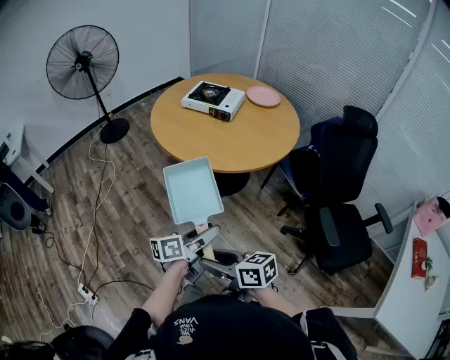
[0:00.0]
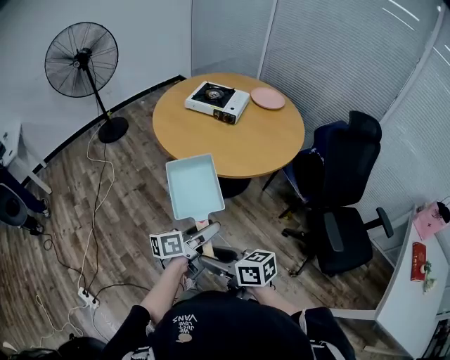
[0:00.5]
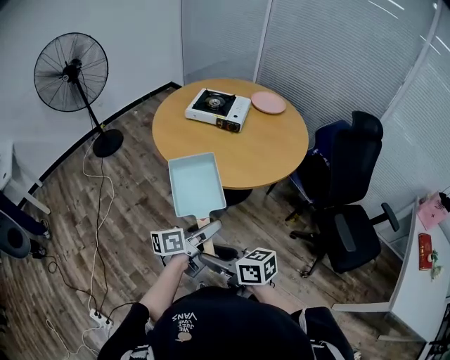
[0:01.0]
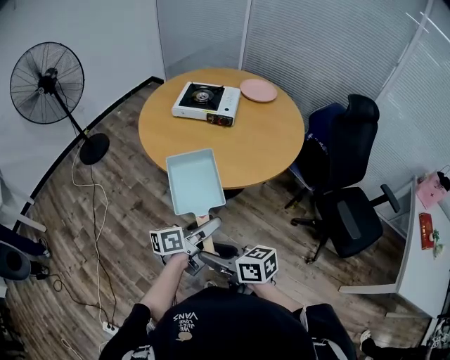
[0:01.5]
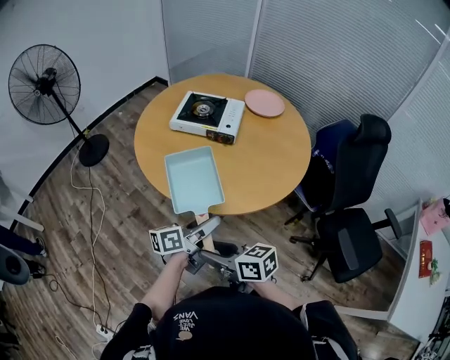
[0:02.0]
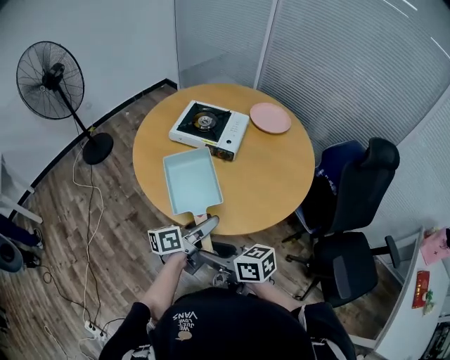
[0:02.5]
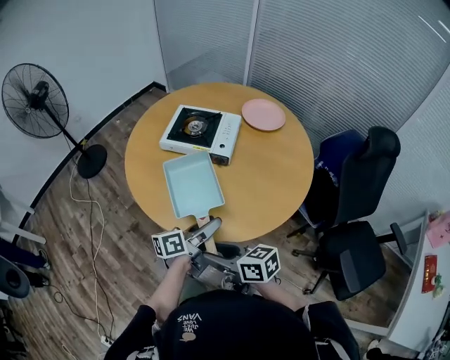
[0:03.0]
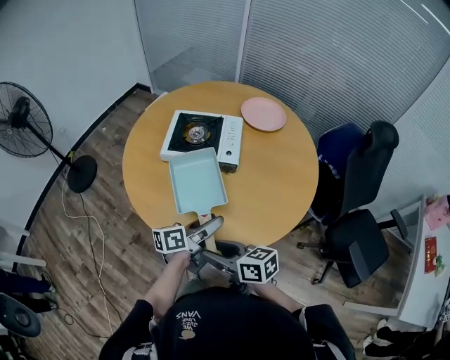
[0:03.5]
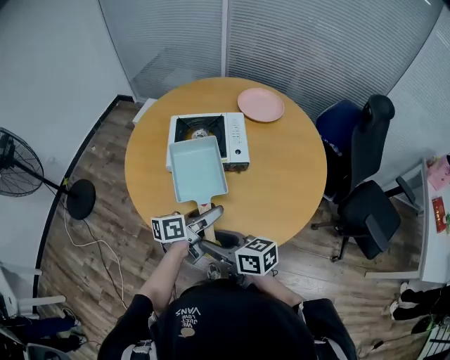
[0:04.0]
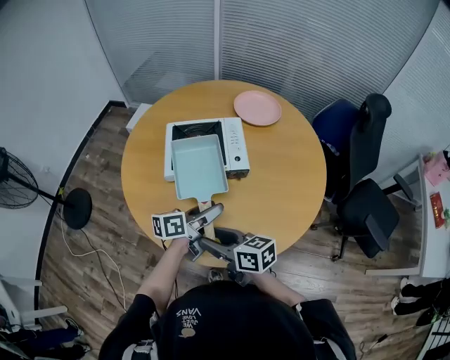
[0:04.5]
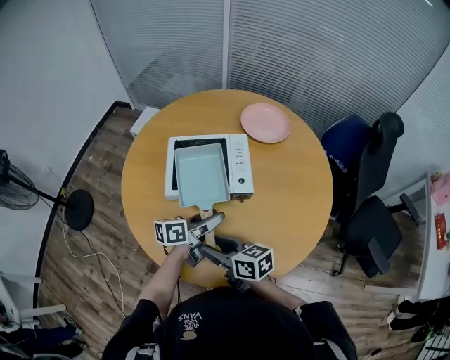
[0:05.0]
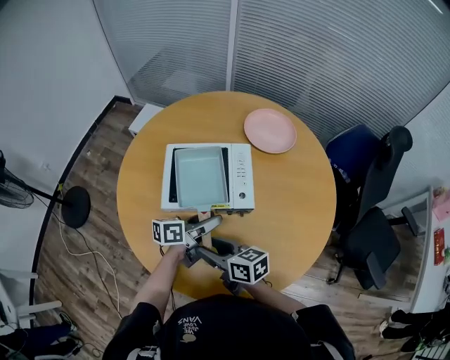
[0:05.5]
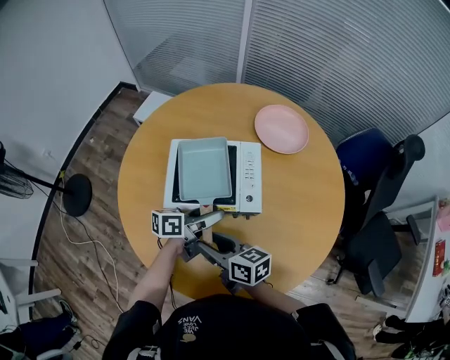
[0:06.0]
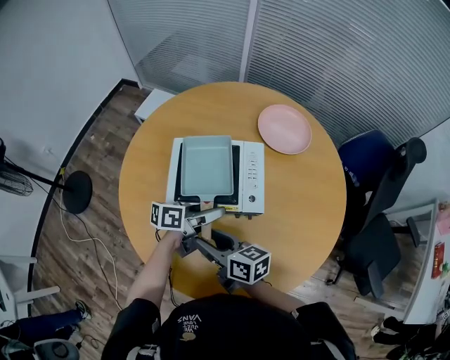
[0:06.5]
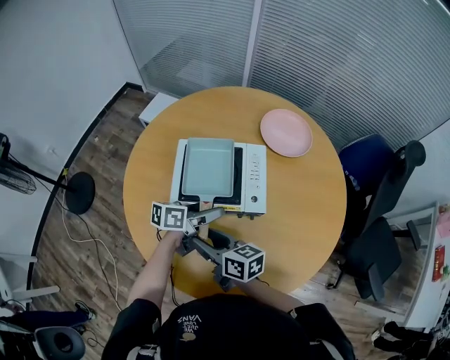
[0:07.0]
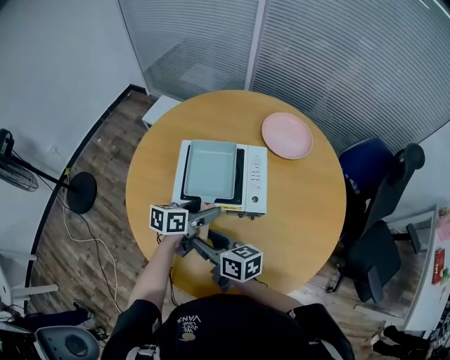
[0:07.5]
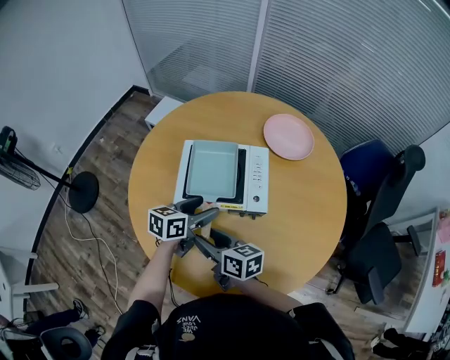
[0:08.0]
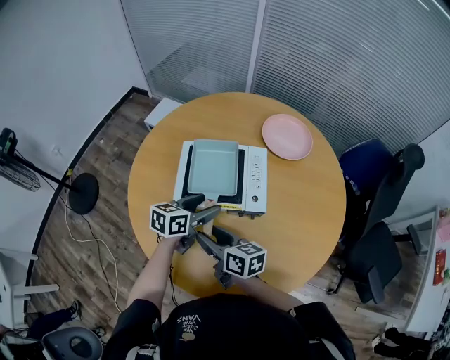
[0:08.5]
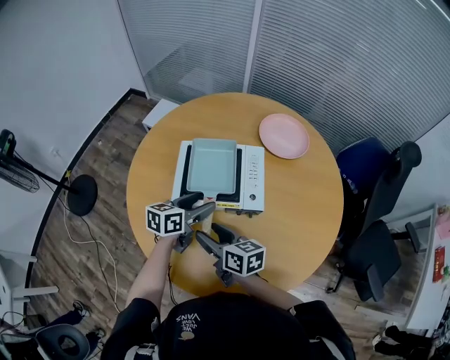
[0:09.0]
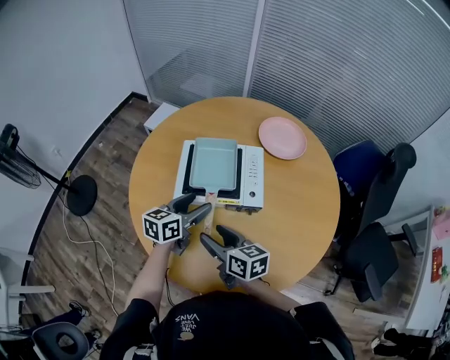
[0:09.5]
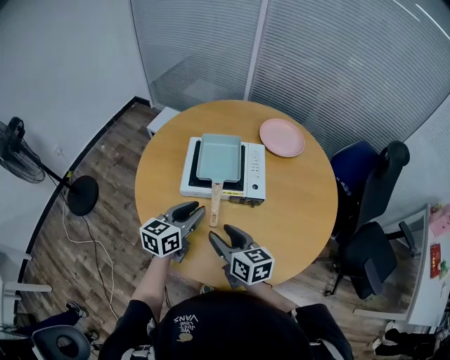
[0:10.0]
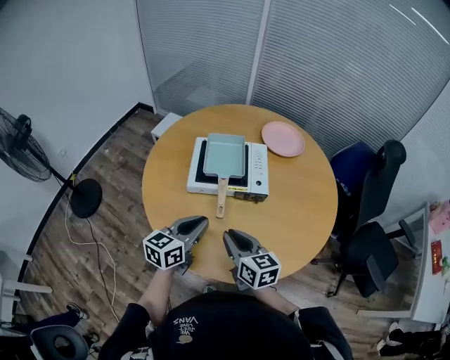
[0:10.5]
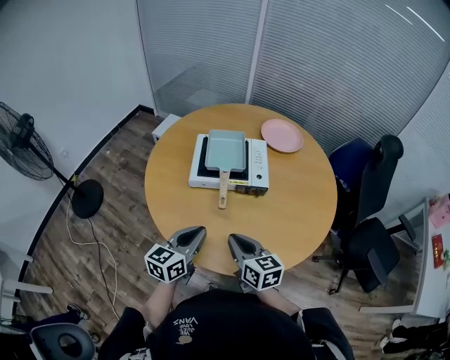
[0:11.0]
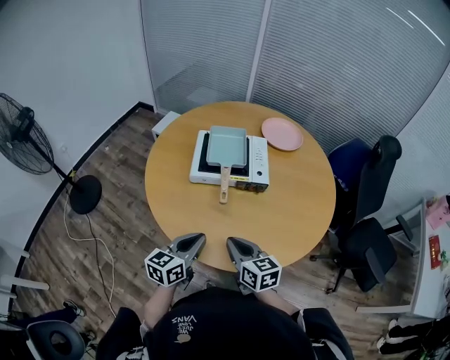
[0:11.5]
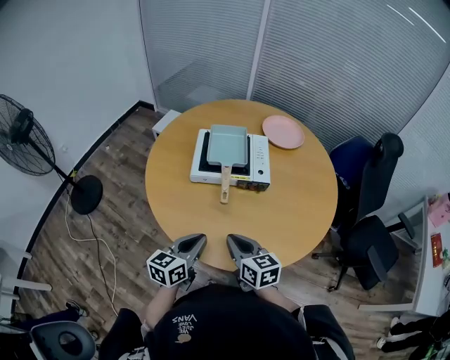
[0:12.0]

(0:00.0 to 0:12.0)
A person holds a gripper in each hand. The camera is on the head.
0:00.0 - 0:02.0: Both grippers travel together forward, some 30 cm.
0:02.0 - 0:04.0: The grippers both shift forward by some 25 cm. The right gripper turns by some 20 degrees; the left gripper changes its angle by roughly 20 degrees.
0:04.0 - 0:06.0: Both grippers move forward, some 20 cm.
0:06.0 - 0:08.0: The left gripper moves to the left, about 5 cm, and swivels roughly 30 degrees.
0:08.0 - 0:10.0: The left gripper goes some 10 cm backward and upward, and closes up. Meanwhile the right gripper shifts approximately 5 cm backward.
0:10.0 - 0:12.0: The left gripper shifts some 15 cm backward, and closes up; the right gripper shifts roughly 10 cm backward, and closes.

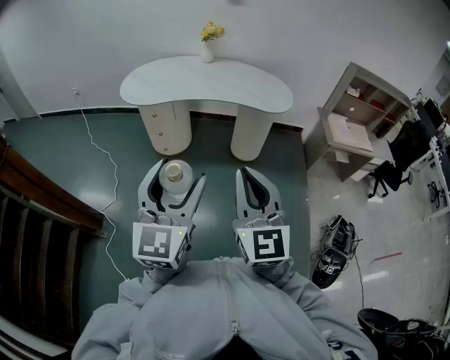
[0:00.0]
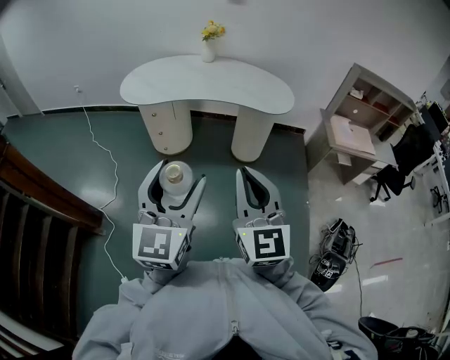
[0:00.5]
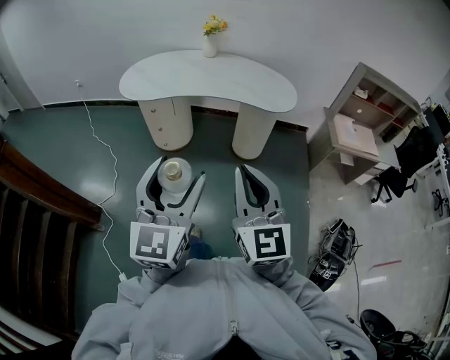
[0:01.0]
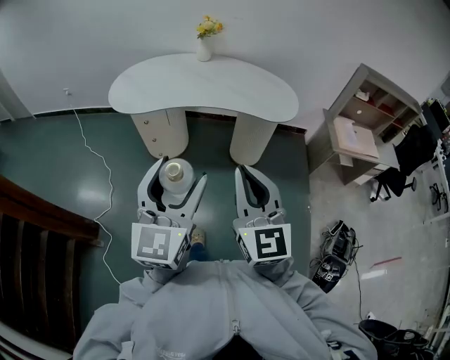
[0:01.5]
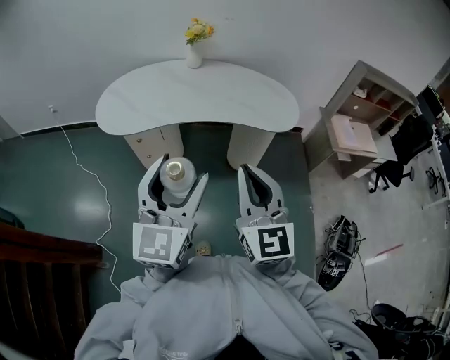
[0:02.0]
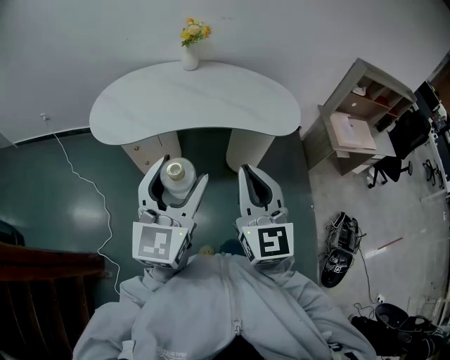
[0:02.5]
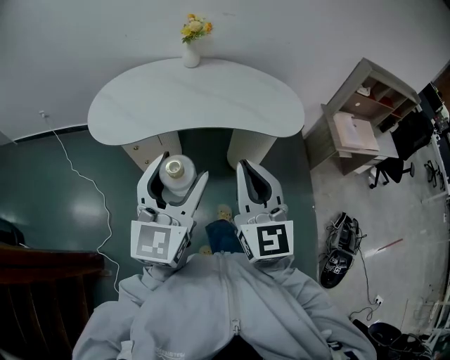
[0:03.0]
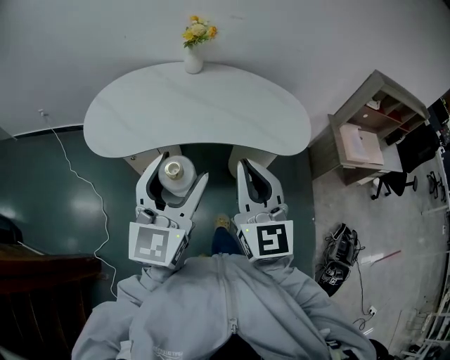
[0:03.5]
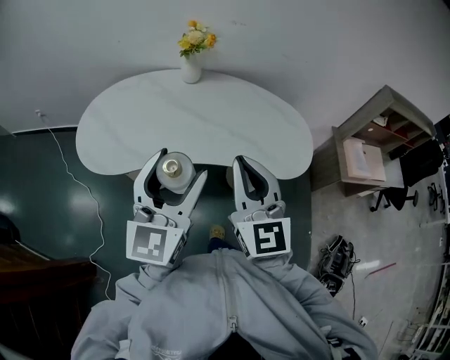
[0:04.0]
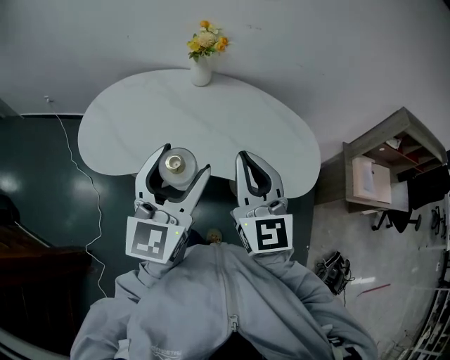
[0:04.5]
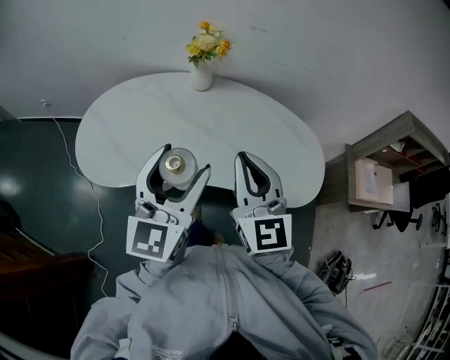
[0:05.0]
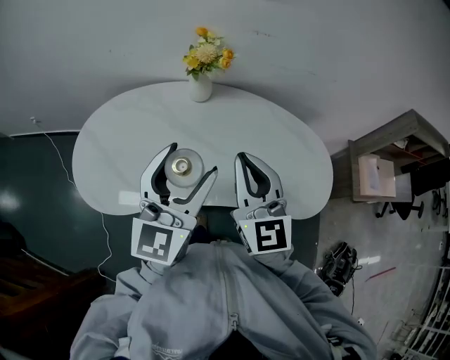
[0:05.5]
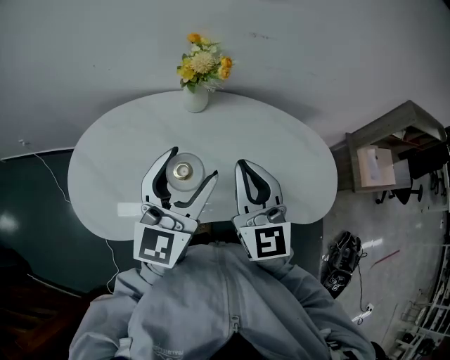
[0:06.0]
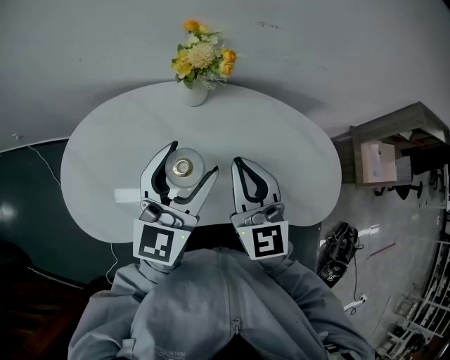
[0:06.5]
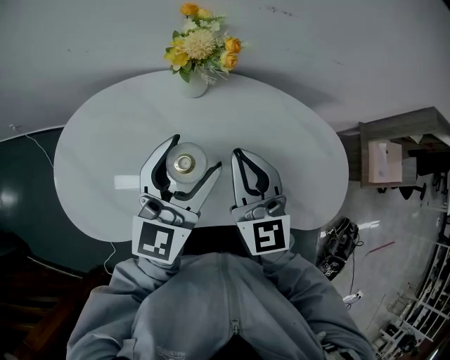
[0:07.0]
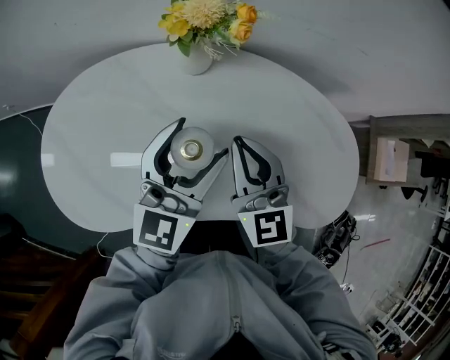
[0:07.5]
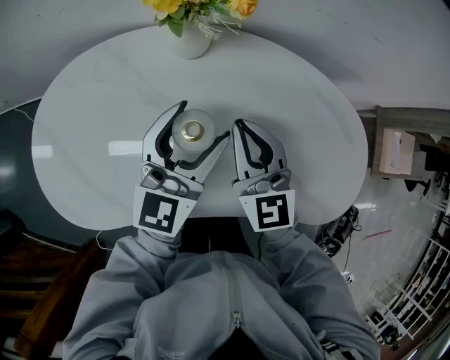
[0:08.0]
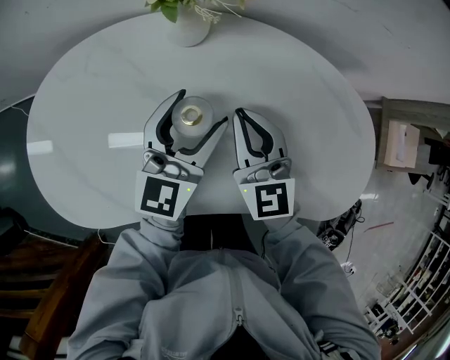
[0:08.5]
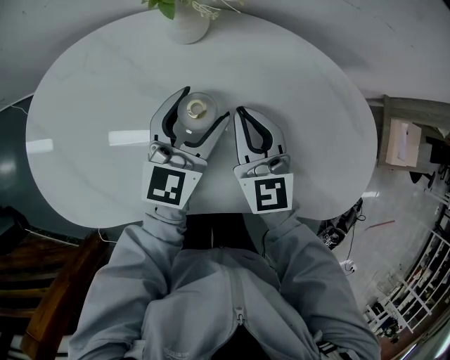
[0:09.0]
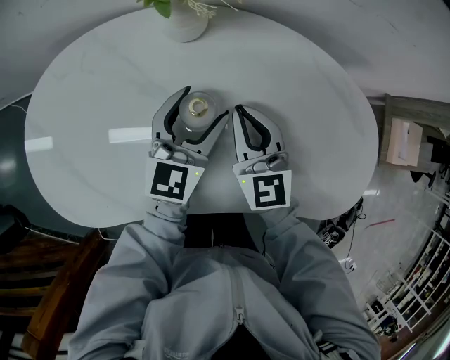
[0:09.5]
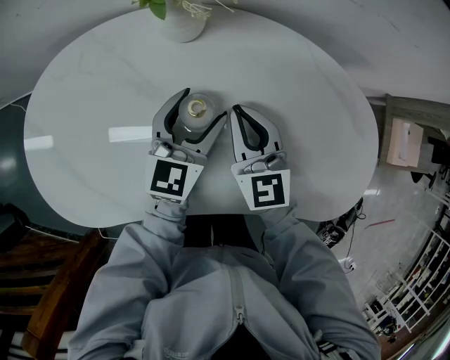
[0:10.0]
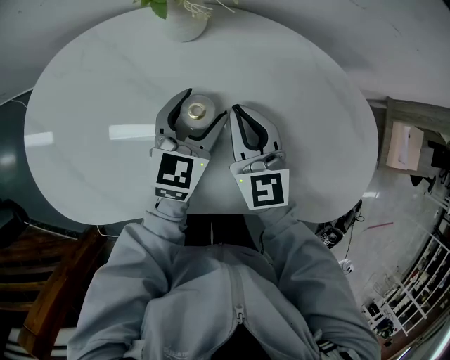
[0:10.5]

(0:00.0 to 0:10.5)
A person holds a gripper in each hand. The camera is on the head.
0:00.0 - 0:02.0: Both grippers move forward, approximately 25 cm.
0:02.0 - 0:04.0: The two grippers go approximately 30 cm forward.
0:04.0 - 0:06.5: Both grippers travel together forward, about 30 cm.
0:06.5 - 0:08.5: Both grippers travel together downward and forward, some 20 cm.
0:08.5 - 0:10.5: The left gripper moves downward, roughly 10 cm.

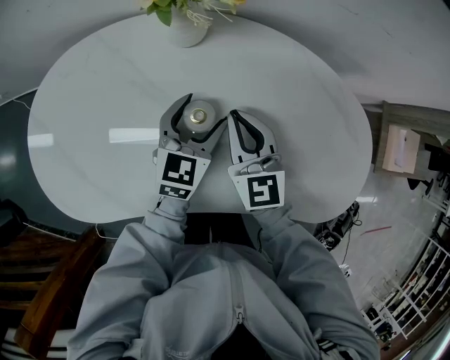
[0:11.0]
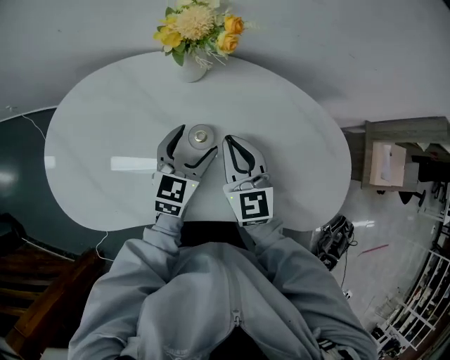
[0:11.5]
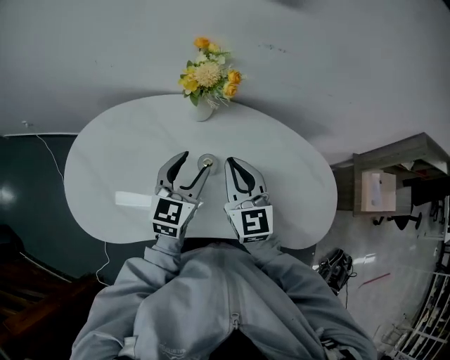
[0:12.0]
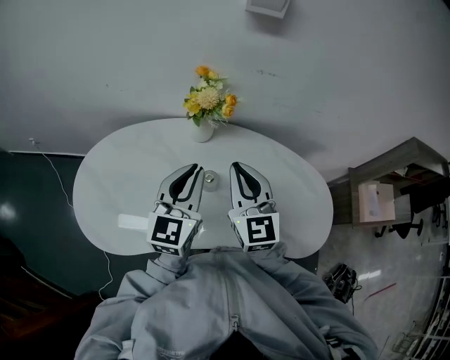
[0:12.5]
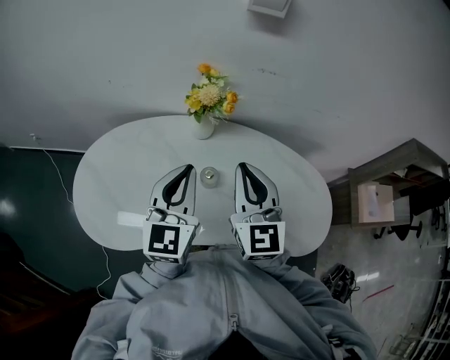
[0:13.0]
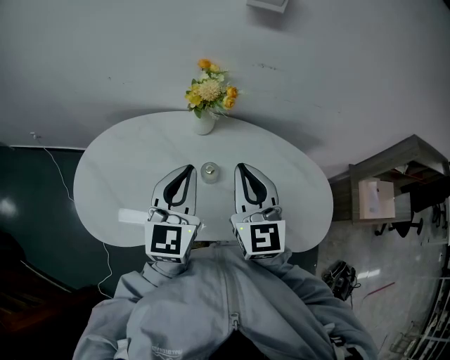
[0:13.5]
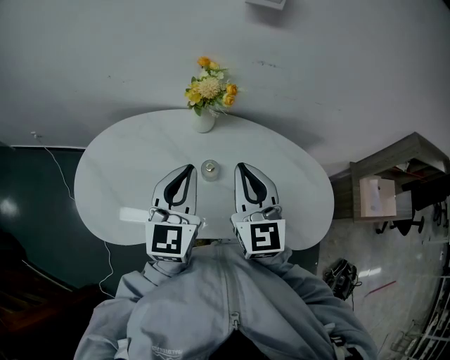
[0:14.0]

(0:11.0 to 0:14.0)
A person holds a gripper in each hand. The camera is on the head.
0:11.0 - 0:12.5: Both grippers travel together upward, approximately 25 cm. The left gripper swivels roughly 20 degrees, and closes up.
0:12.5 - 0:14.0: There are only small adjustments of the grippers.

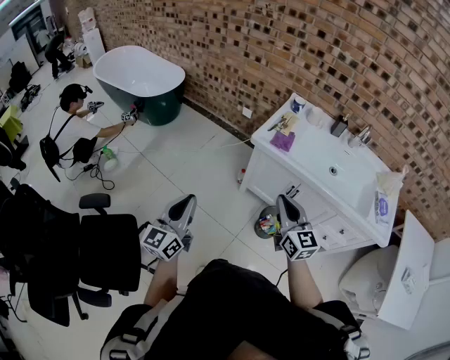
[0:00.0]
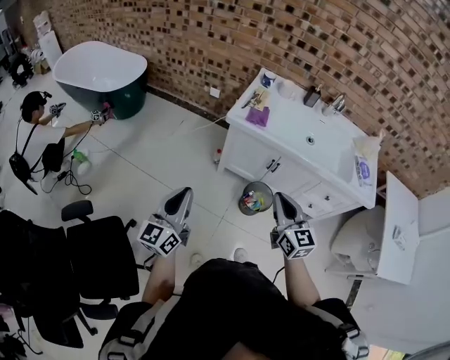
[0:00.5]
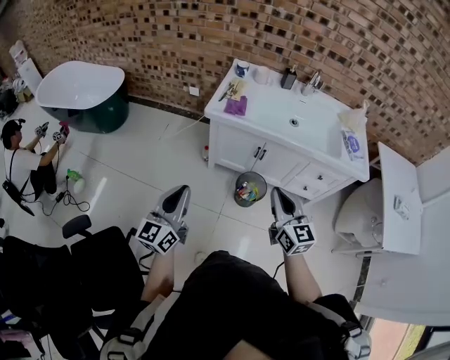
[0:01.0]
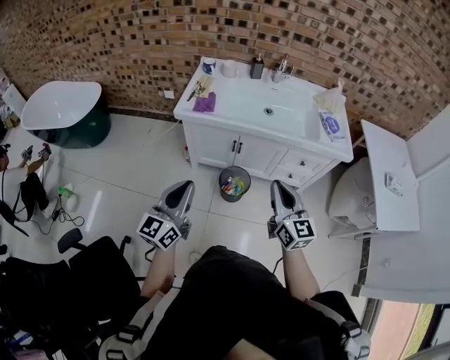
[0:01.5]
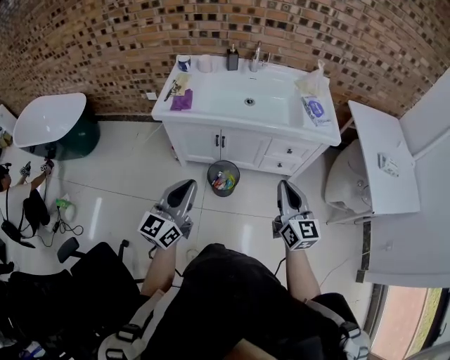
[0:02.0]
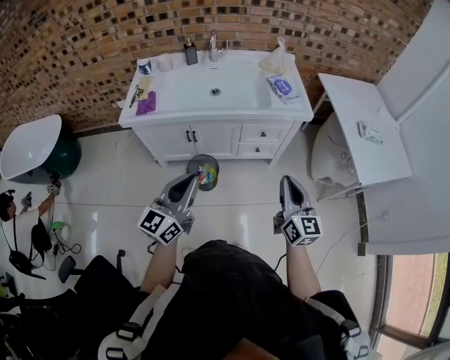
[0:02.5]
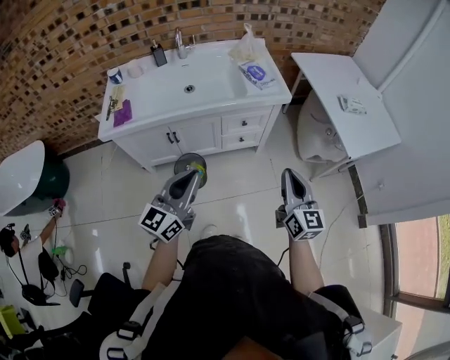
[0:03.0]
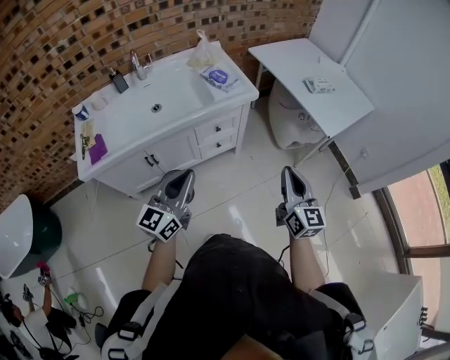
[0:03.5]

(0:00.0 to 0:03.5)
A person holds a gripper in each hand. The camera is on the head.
0:00.0 - 0:02.0: The left gripper changes place by roughly 25 cm, and changes its angle by some 30 degrees. The right gripper ends up some 30 cm from where it was, and rotates some 30 degrees.
0:02.0 - 0:03.5: The right gripper shifts by about 20 cm, and swivels roughly 30 degrees, while the left gripper shifts by about 20 cm, and turns by about 30 degrees.
